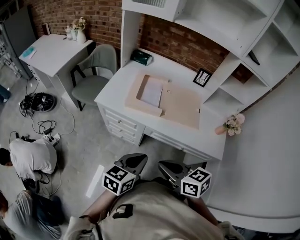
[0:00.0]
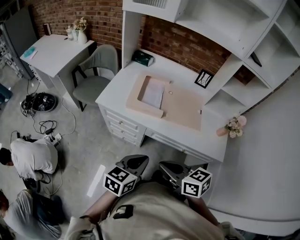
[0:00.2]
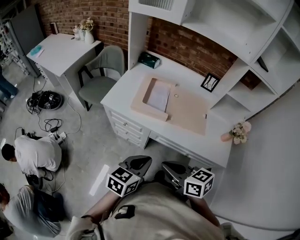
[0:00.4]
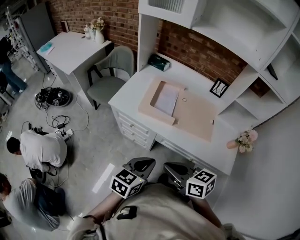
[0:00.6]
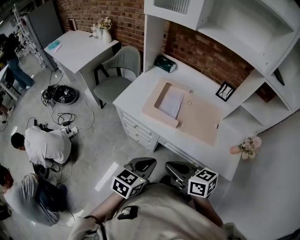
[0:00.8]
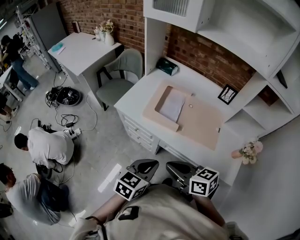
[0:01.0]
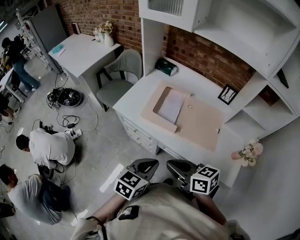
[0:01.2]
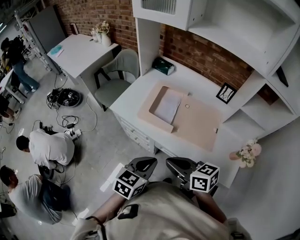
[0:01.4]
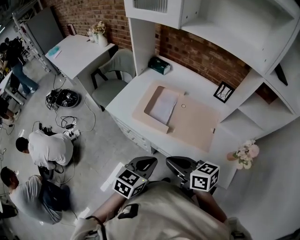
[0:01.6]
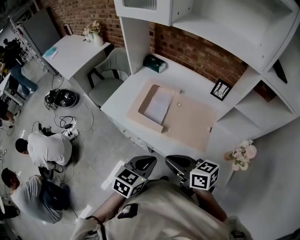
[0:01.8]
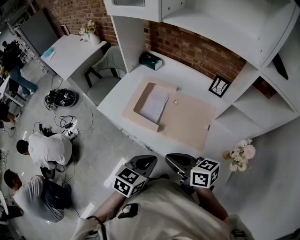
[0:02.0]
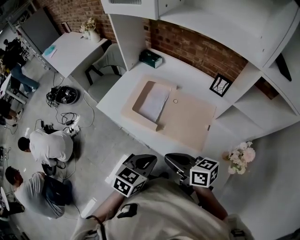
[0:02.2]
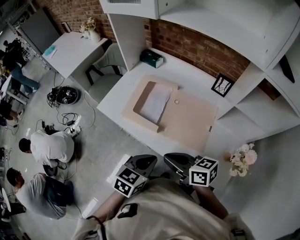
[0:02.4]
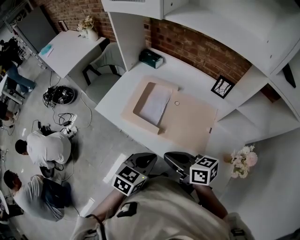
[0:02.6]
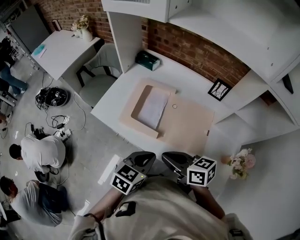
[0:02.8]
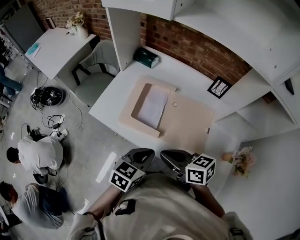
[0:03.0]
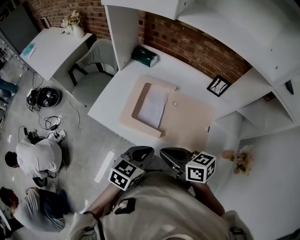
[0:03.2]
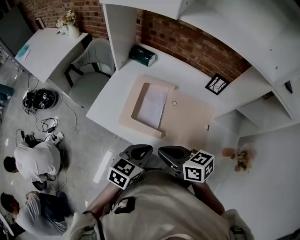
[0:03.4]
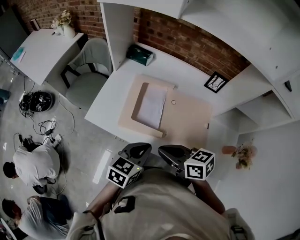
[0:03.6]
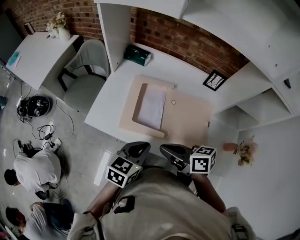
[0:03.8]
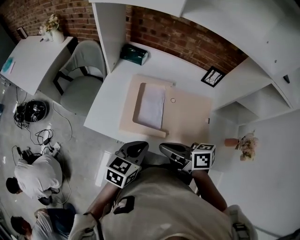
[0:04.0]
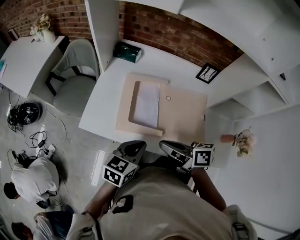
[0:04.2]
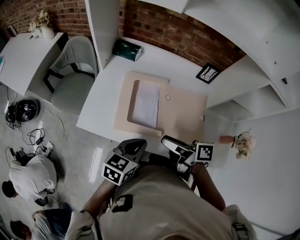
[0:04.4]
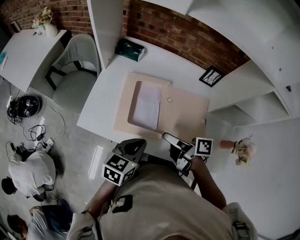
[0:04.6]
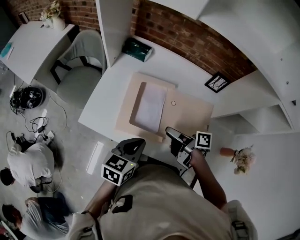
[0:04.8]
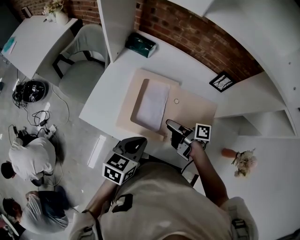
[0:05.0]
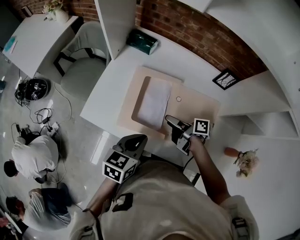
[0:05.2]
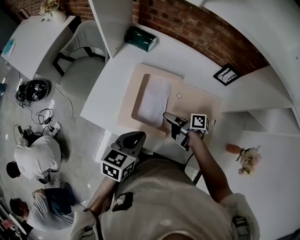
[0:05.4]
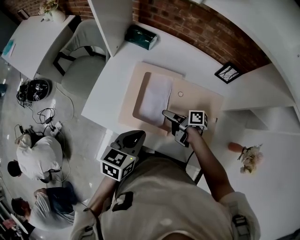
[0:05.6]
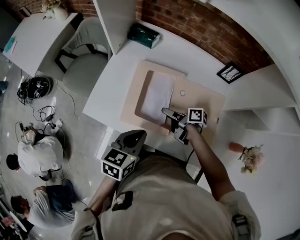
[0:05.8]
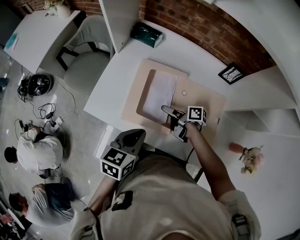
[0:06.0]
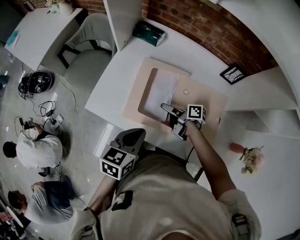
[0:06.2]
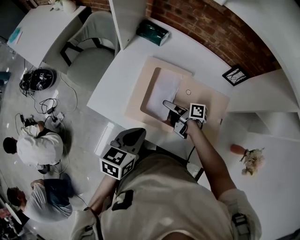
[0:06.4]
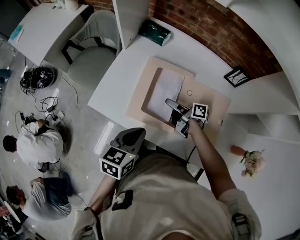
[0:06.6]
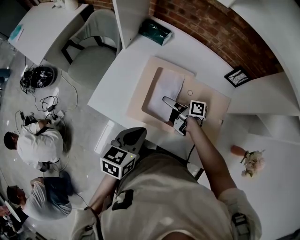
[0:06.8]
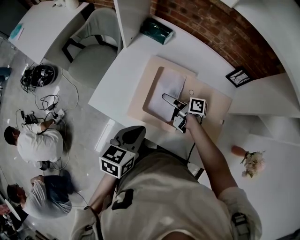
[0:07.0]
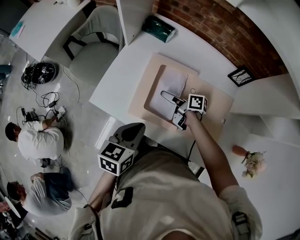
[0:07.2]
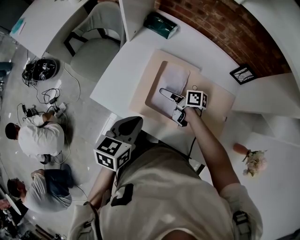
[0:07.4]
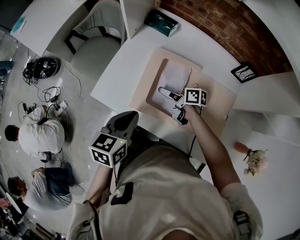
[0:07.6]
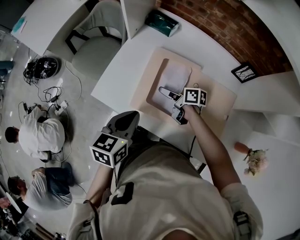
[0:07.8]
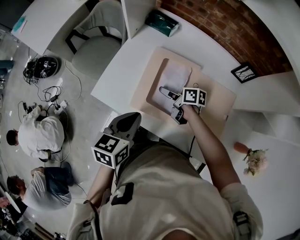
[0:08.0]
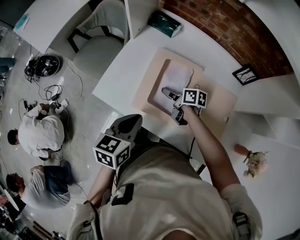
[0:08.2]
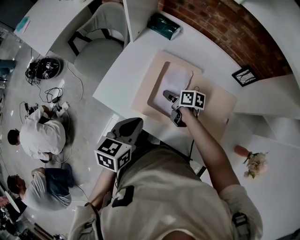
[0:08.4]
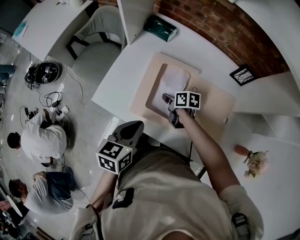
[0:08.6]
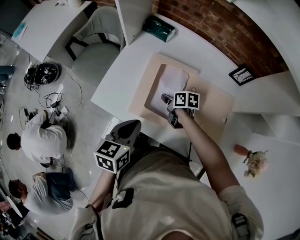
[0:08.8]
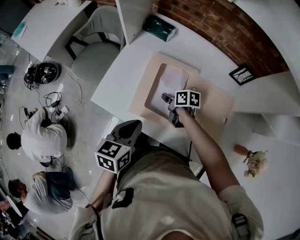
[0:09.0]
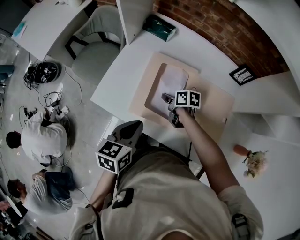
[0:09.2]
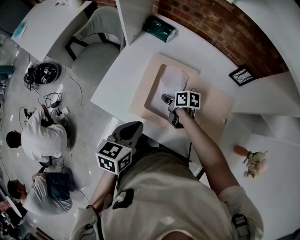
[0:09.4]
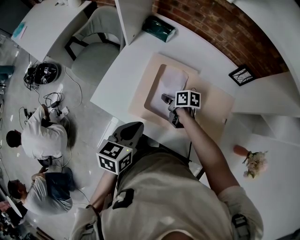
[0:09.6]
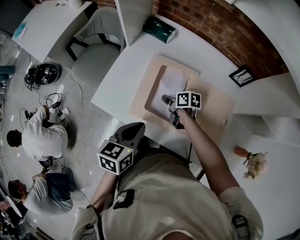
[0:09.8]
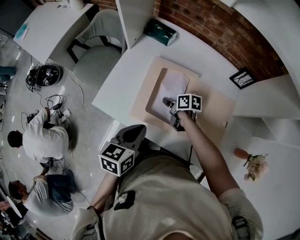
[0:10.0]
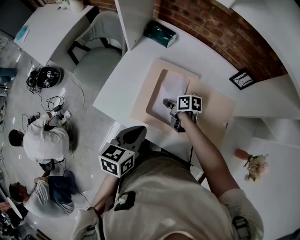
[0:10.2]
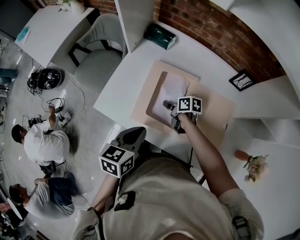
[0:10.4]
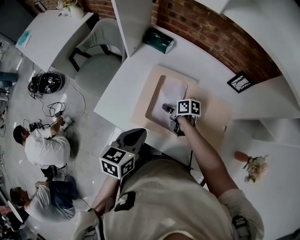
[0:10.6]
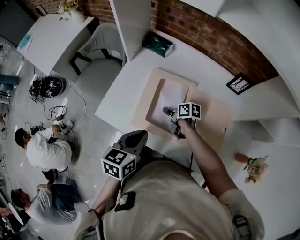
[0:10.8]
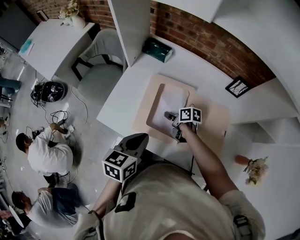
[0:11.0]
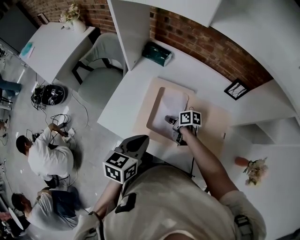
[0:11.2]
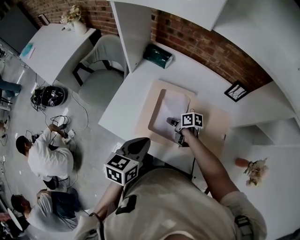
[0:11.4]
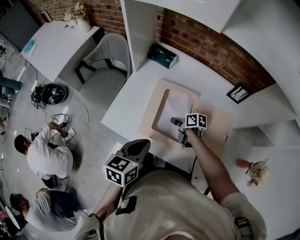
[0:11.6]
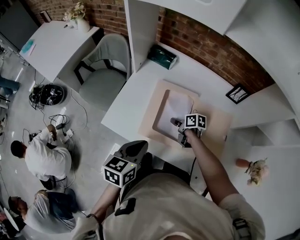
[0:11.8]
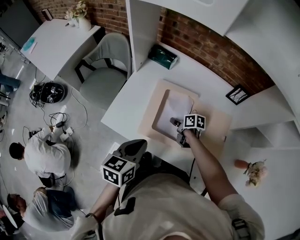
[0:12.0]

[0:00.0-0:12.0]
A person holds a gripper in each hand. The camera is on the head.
0:00.0 to 0:01.6: The right gripper travels forward and to the right by approximately 15 cm; the left gripper moves to the right and forward, approximately 10 cm.
0:01.6 to 0:03.0: The grippers both shift forward by roughly 10 cm.
0:03.0 to 0:04.4: The left gripper shifts about 10 cm forward and to the left. The right gripper travels forward by some 10 cm, changes its angle by approximately 40 degrees, and opens its fingers.
0:04.4 to 0:06.0: The right gripper shifts about 20 cm downward and forward, swivels some 20 degrees, and opens up.
0:06.0 to 0:07.6: The left gripper shifts roughly 5 cm to the left. Meanwhile the right gripper moves to the left and forward, some 10 cm.
0:07.6 to 0:09.0: The right gripper closes its fingers.
0:09.0 to 0:10.4: The two grippers keep their place.
0:10.4 to 0:12.0: The grippers make only small movements.

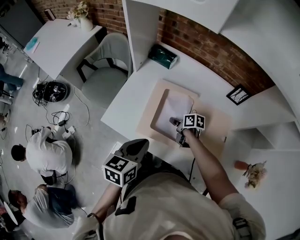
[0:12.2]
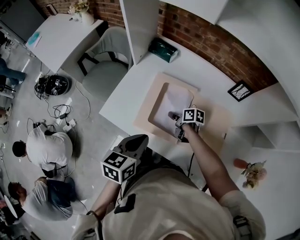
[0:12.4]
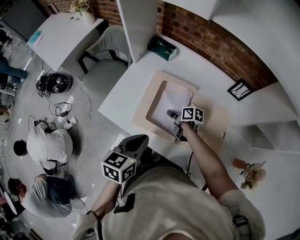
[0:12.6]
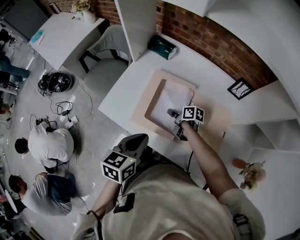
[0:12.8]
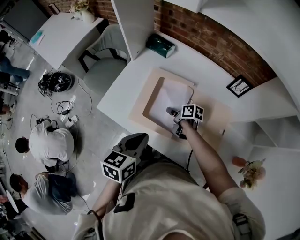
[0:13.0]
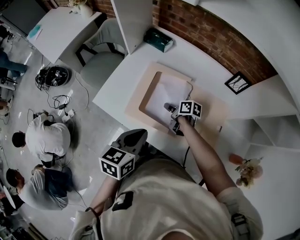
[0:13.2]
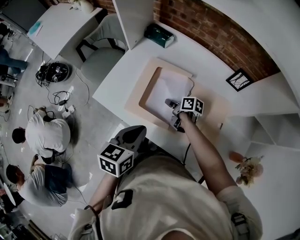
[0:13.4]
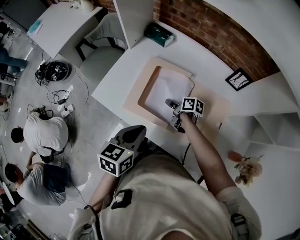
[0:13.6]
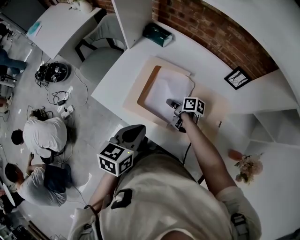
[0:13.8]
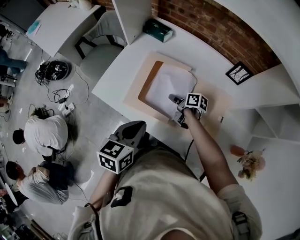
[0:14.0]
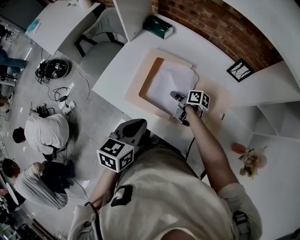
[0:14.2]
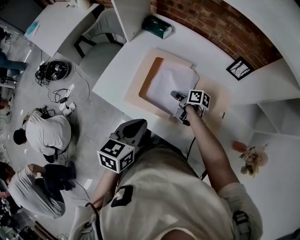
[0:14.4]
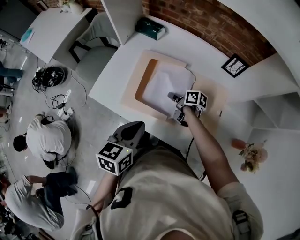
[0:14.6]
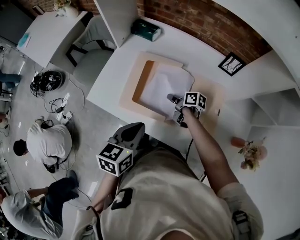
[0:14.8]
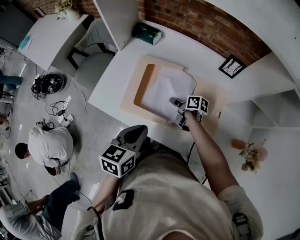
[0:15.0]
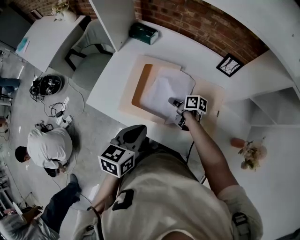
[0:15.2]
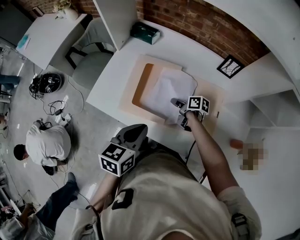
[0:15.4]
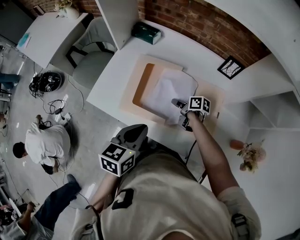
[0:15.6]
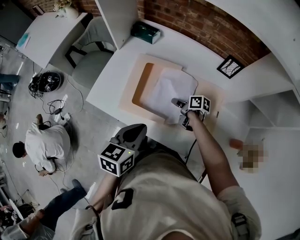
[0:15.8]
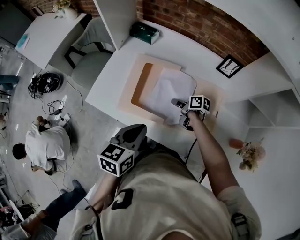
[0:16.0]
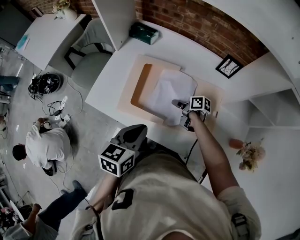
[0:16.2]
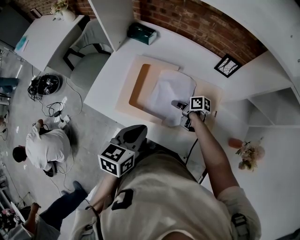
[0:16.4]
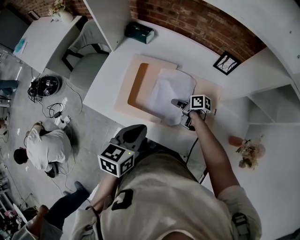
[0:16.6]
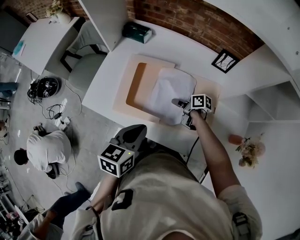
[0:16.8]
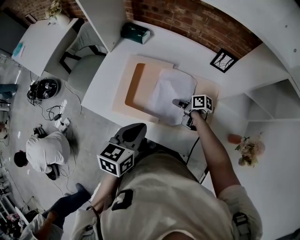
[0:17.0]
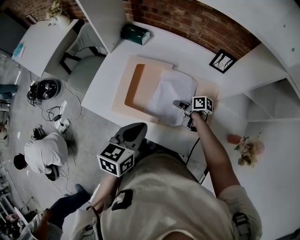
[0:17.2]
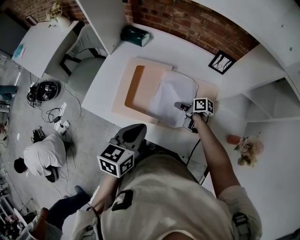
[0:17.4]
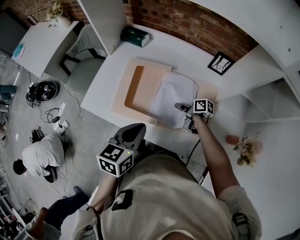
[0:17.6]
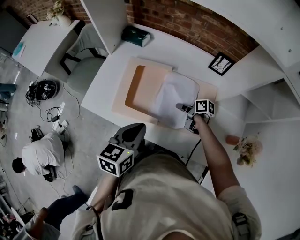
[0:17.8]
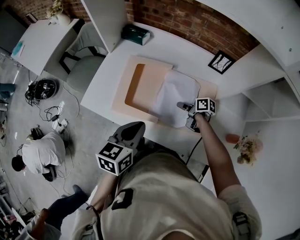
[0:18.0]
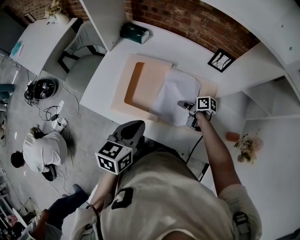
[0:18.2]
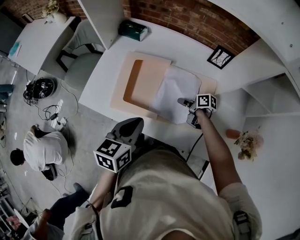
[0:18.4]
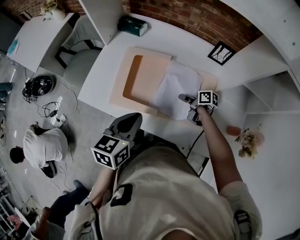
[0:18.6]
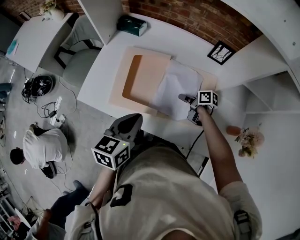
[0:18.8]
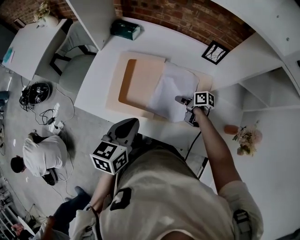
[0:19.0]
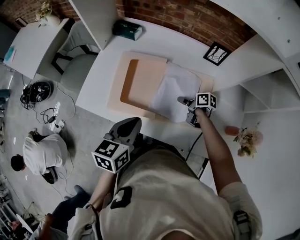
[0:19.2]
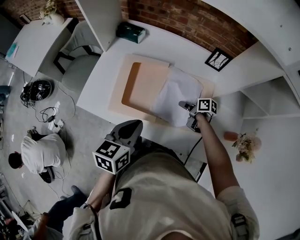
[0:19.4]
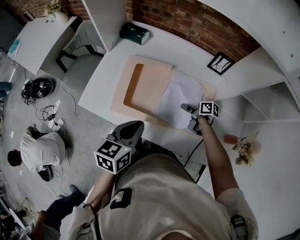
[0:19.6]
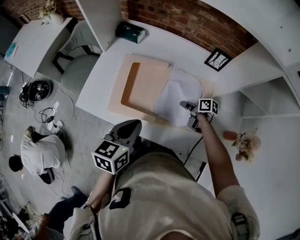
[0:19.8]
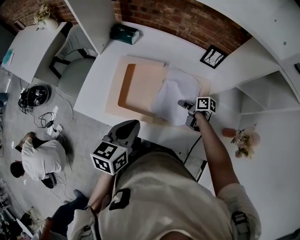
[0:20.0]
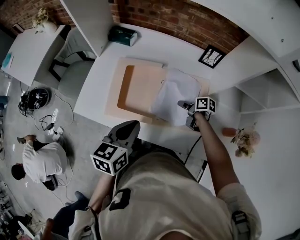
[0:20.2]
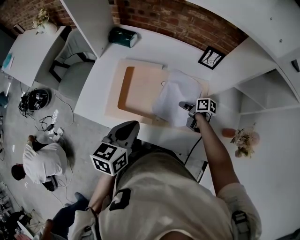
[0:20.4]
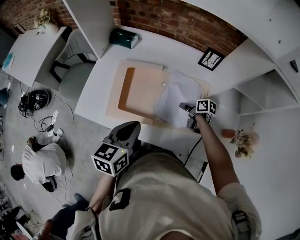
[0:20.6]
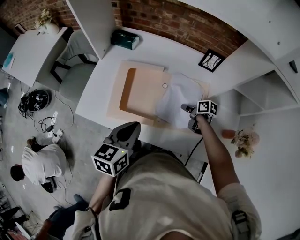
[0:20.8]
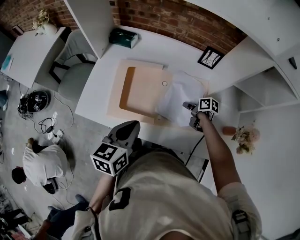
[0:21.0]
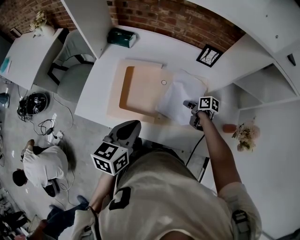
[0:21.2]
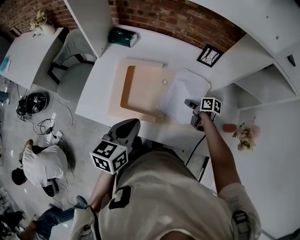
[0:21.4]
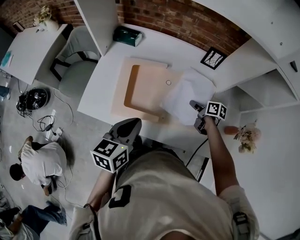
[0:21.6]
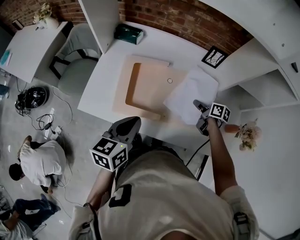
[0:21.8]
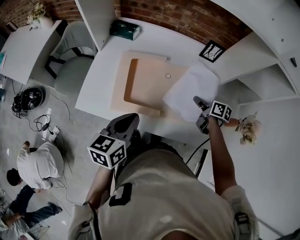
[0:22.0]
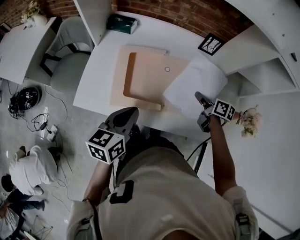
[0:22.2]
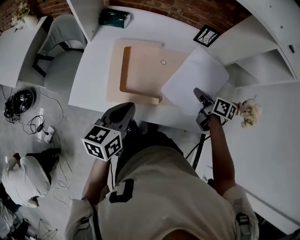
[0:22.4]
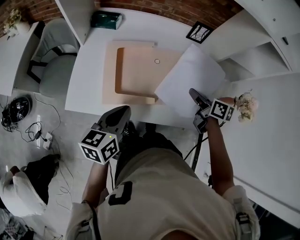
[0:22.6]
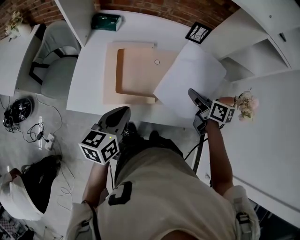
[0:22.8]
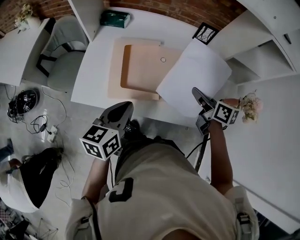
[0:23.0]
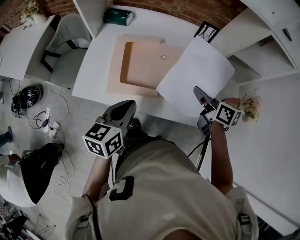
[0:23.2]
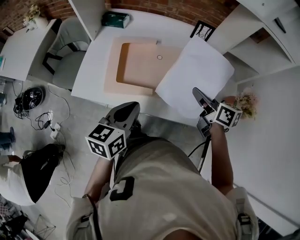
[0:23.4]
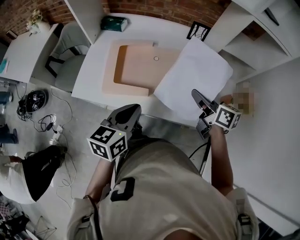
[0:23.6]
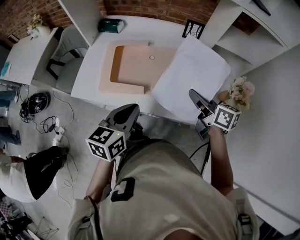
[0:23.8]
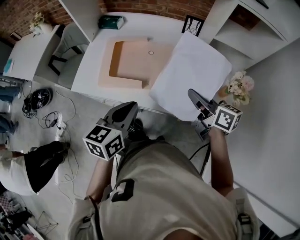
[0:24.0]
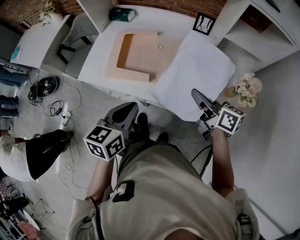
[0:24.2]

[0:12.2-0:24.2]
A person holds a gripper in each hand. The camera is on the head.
0:12.2 to 0:13.8: The left gripper travels to the right by roughly 5 cm.
0:13.8 to 0:15.2: The grippers move only a little.
0:15.2 to 0:16.6: The grippers make only small movements.
0:16.6 to 0:18.2: The right gripper travels to the right by about 5 cm.
0:18.2 to 0:19.8: The grippers make only small movements.
0:19.8 to 0:21.2: The grippers make only small movements.
0:21.2 to 0:22.6: The right gripper shifts some 15 cm upward and backward, and swivels approximately 20 degrees. Meanwhile the left gripper travels to the left by roughly 5 cm.
0:22.6 to 0:24.2: The right gripper moves backward and upward, roughly 15 cm, and turns by roughly 20 degrees, while the left gripper moves backward, to the right and upward, approximately 15 cm.
